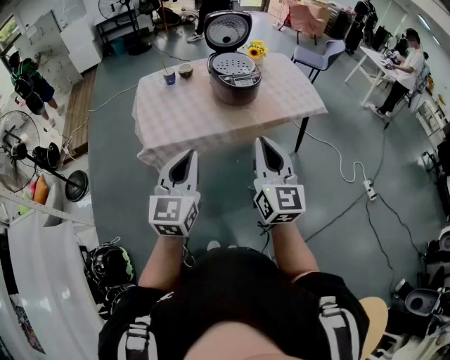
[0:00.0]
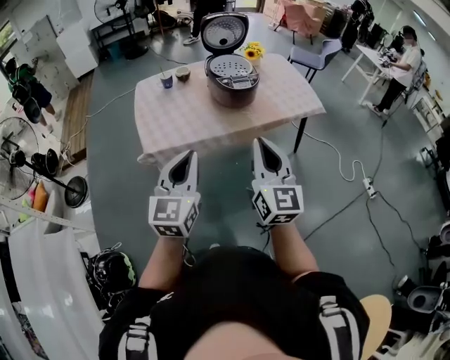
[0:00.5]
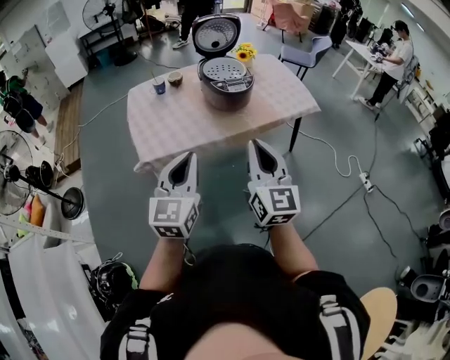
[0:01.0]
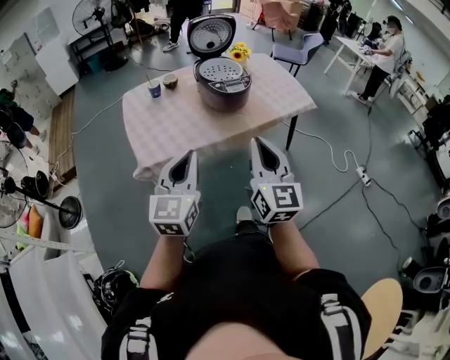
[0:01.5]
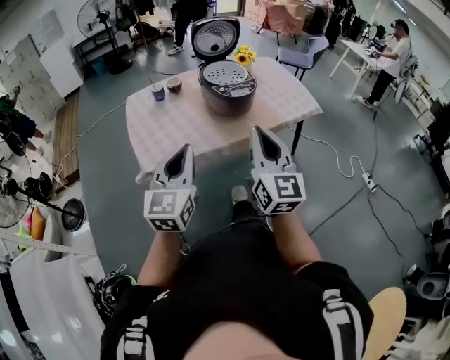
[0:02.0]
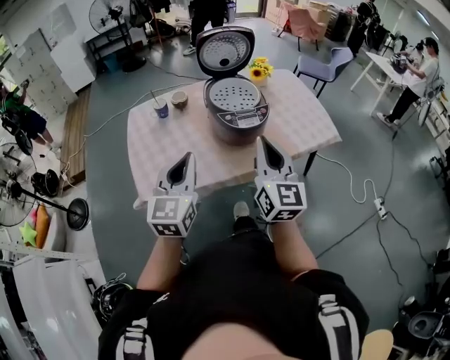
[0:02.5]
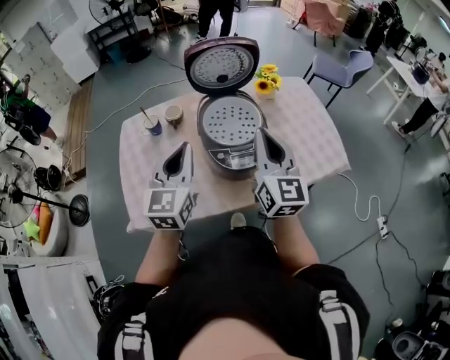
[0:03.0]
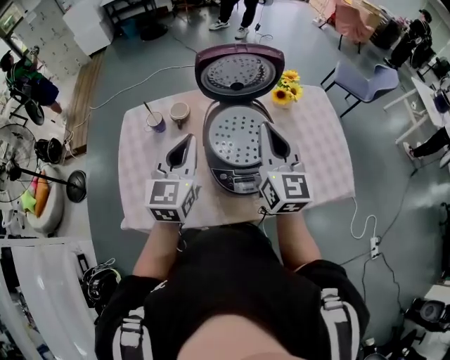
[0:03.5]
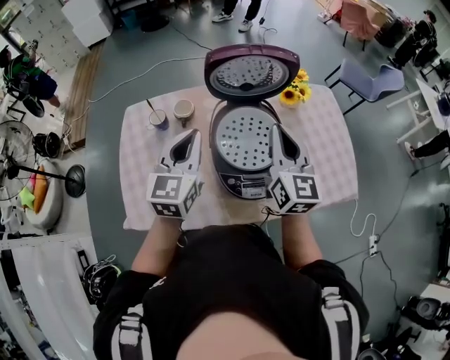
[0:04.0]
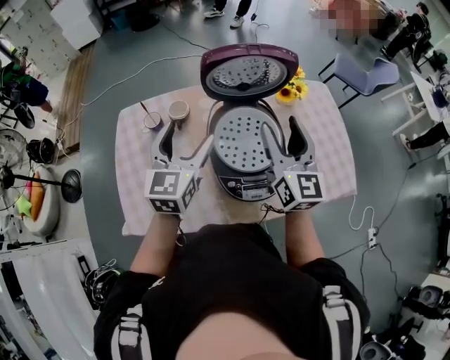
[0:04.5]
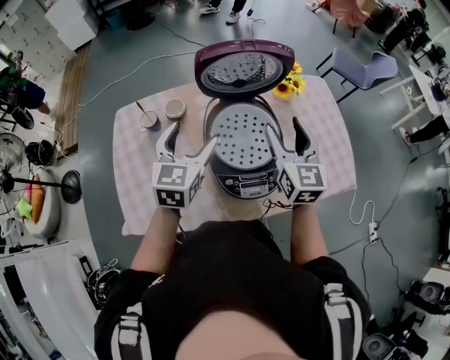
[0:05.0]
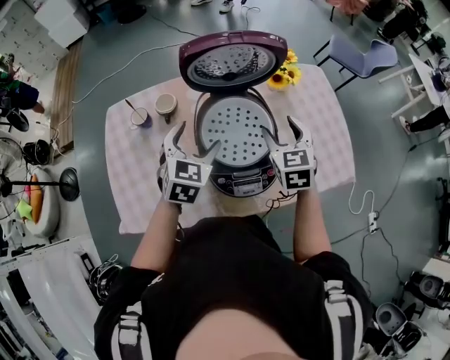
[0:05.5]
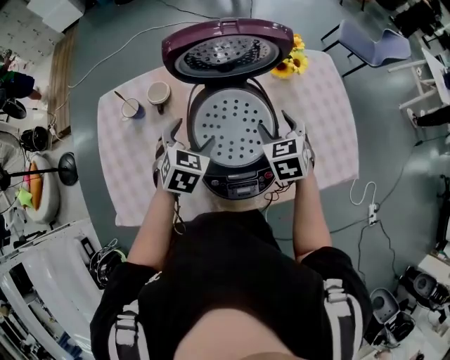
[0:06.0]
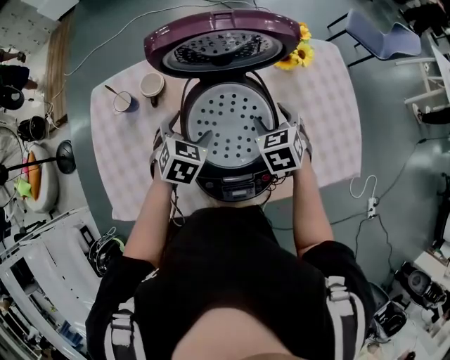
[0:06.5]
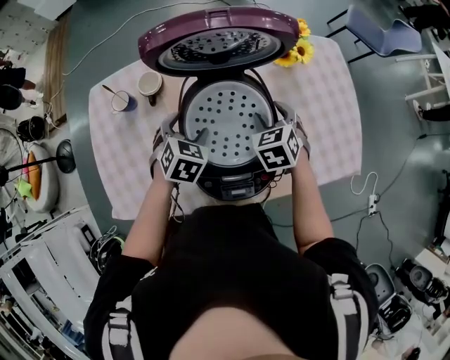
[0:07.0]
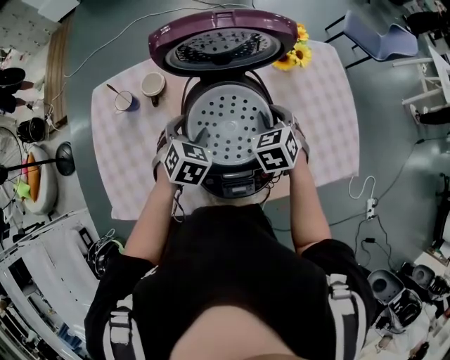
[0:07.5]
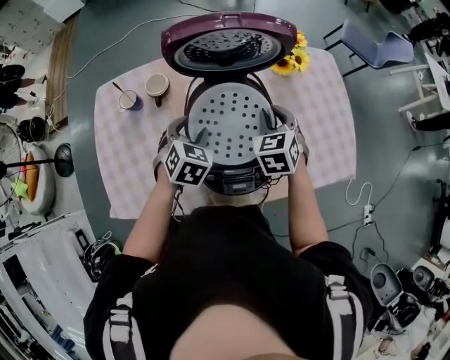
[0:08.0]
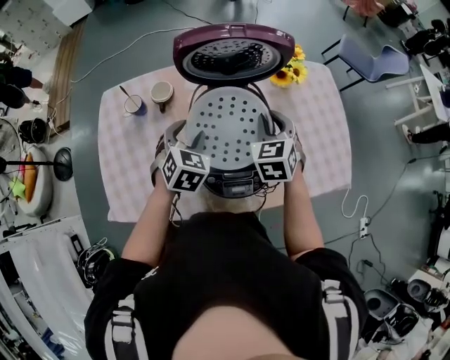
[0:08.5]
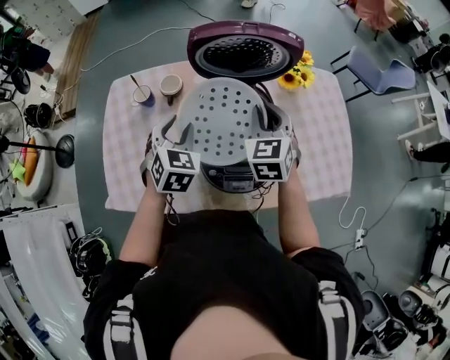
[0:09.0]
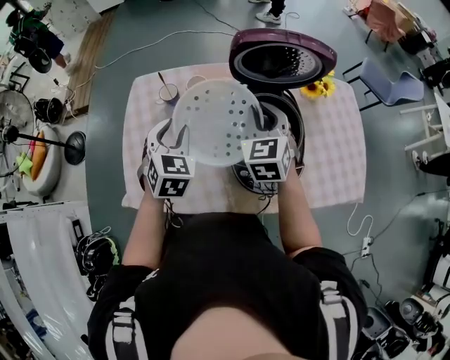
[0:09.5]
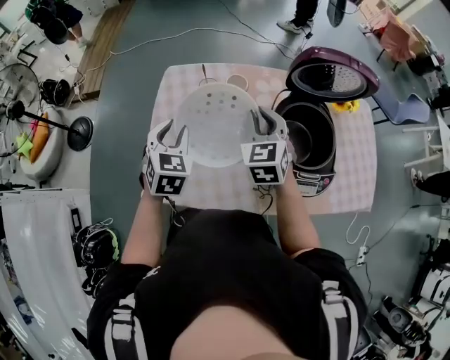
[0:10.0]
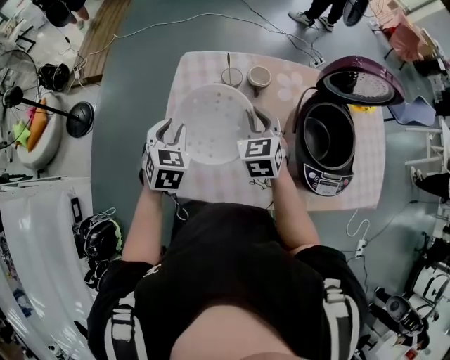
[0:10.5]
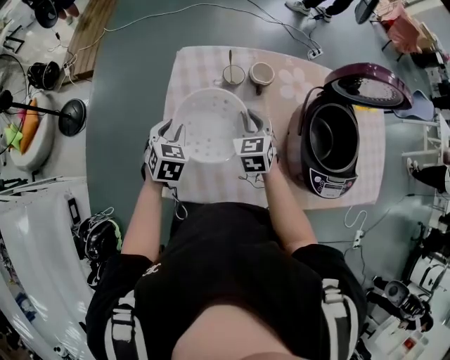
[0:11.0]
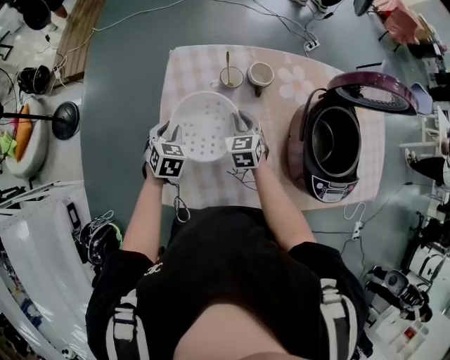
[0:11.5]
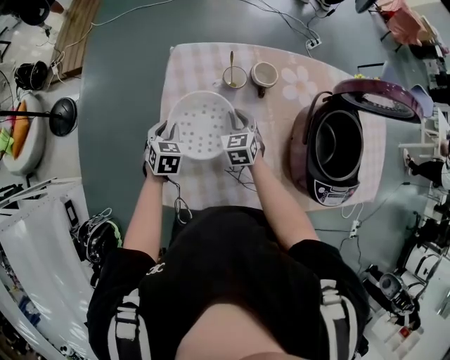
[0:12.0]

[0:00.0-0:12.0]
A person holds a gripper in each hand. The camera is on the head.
0:00.0 to 0:02.0: The two grippers go some 10 cm forward.
0:02.0 to 0:04.0: Both grippers are carried forward, approximately 50 cm.
0:04.0 to 0:06.0: Both grippers travel together downward and forward, about 20 cm. The left gripper tips its fingers downward by roughly 40 degrees, and opens its fingers. Meanwhile the right gripper points its fingers roughly 40 degrees further downward, and opens.
0:06.0 to 0:08.0: The left gripper closes. The right gripper closes its fingers.
0:08.0 to 0:10.0: The two grippers go some 35 cm to the left. The left gripper swivels approximately 20 degrees.
0:10.0 to 0:12.0: Both grippers travel together downward and to the left, roughly 30 cm.

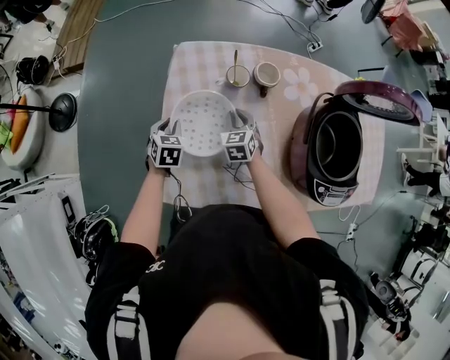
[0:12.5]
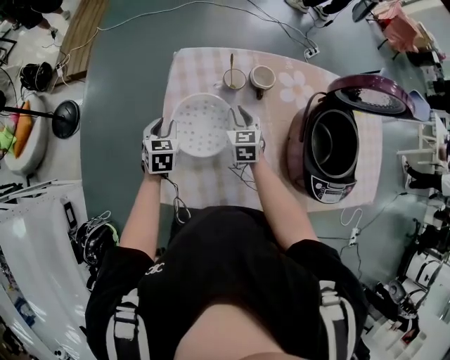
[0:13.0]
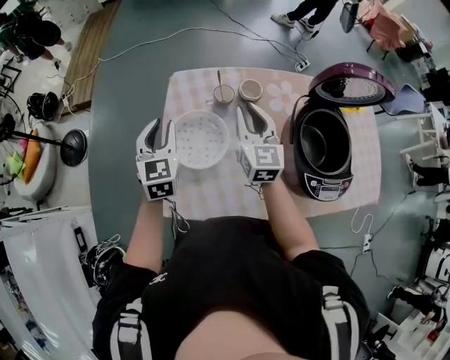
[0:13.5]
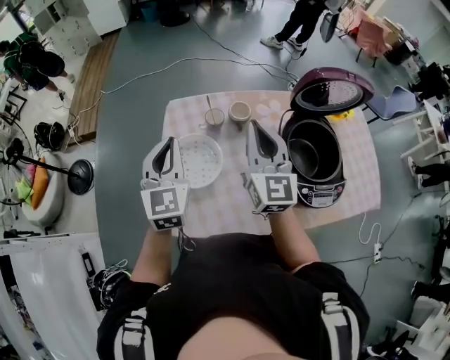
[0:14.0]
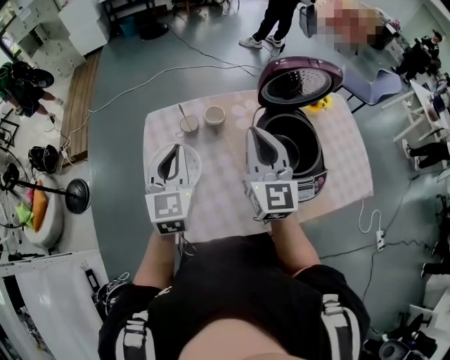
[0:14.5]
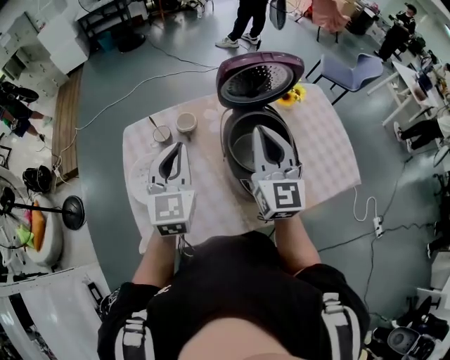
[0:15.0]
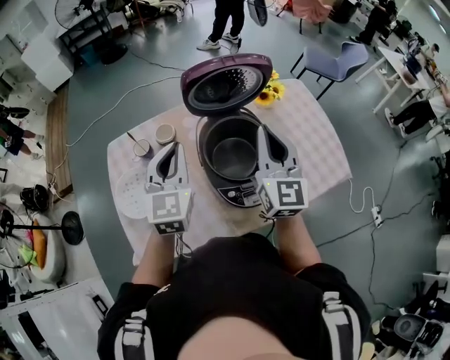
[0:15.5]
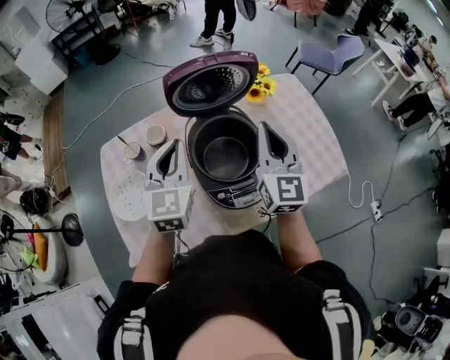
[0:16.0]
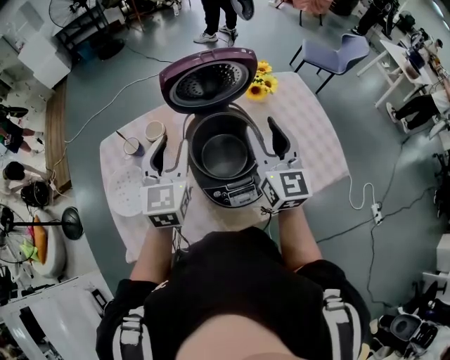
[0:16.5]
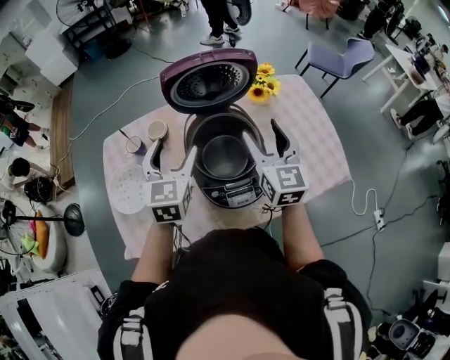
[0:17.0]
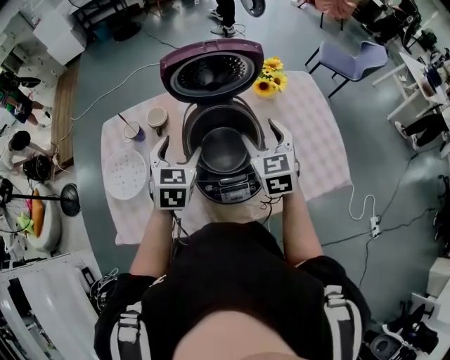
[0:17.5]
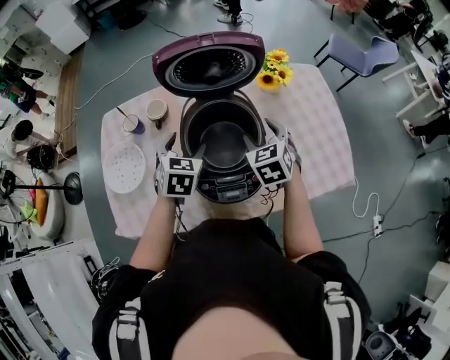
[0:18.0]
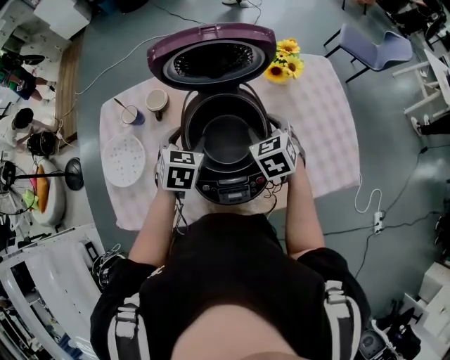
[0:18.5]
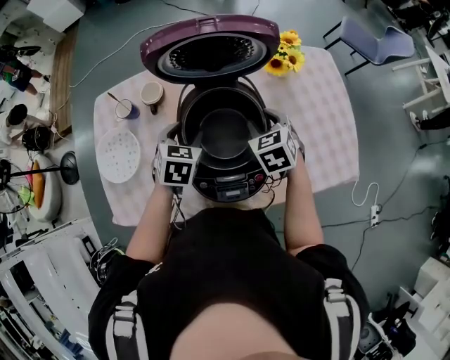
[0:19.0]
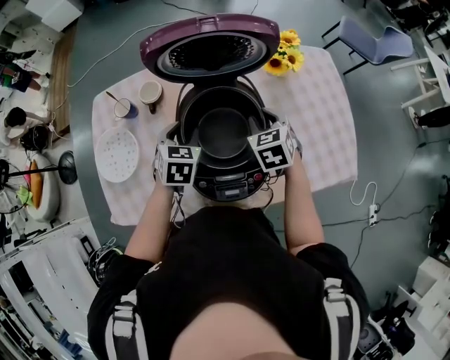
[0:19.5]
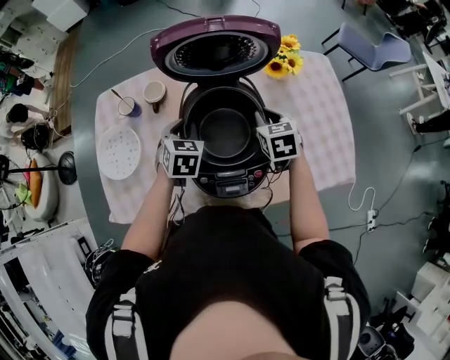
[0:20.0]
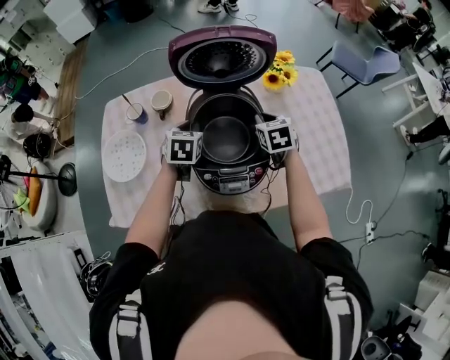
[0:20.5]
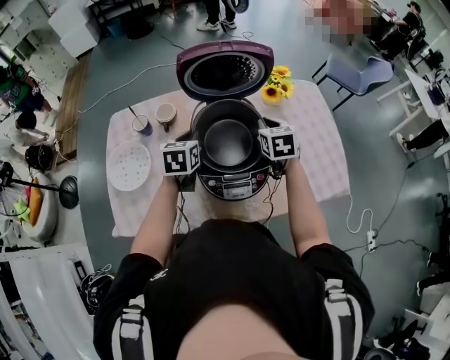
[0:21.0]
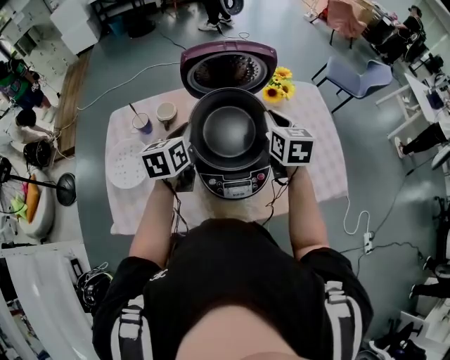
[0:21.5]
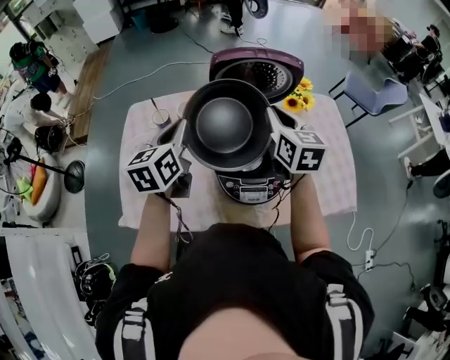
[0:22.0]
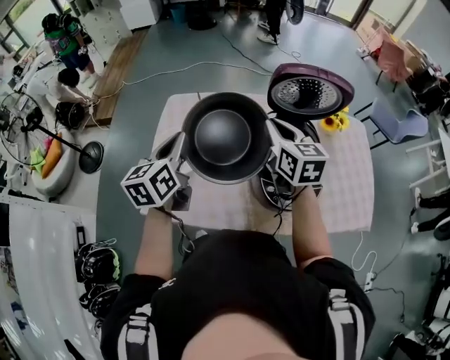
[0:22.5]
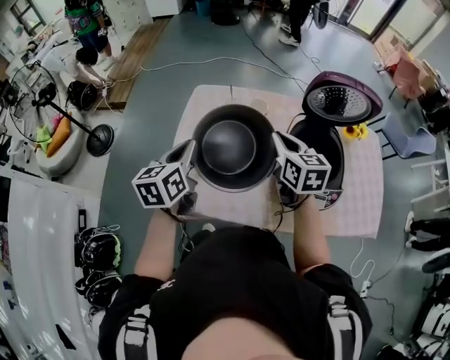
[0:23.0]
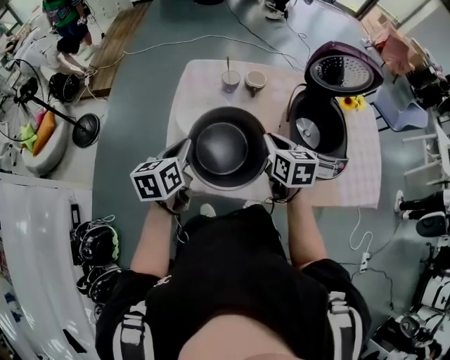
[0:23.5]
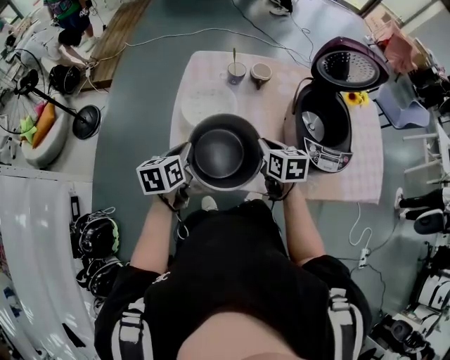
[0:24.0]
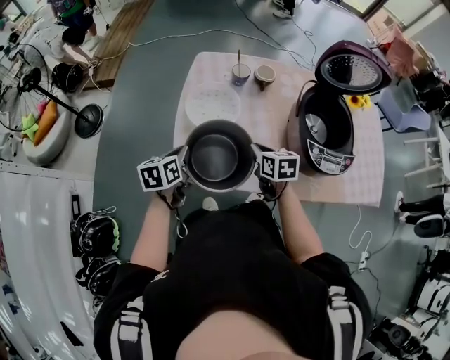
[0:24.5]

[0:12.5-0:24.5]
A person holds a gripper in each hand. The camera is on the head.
0:12.5 to 0:14.5: Both grippers travel together upward and to the right, roughly 40 cm. The left gripper tilts its fingers about 40 degrees upward. Meanwhile the right gripper tilts its fingers approximately 50 degrees upward.
0:14.5 to 0:16.5: The grippers both shift to the right by approximately 25 cm. The right gripper opens up.
0:16.5 to 0:18.5: The grippers both shift downward by approximately 20 cm. The left gripper angles its fingers downward, by about 30 degrees; the right gripper angles its fingers downward, by some 50 degrees.
0:18.5 to 0:20.5: The right gripper closes up. Meanwhile the left gripper closes.
0:20.5 to 0:22.5: The right gripper travels to the left and upward by some 30 cm, and turns by about 30 degrees; the left gripper heads to the left, upward and backward, covering roughly 35 cm, and rotates about 40 degrees.
0:22.5 to 0:24.5: Both grippers move downward, to the left and backward, approximately 35 cm. The left gripper changes its angle by some 20 degrees. The right gripper turns by roughly 30 degrees.

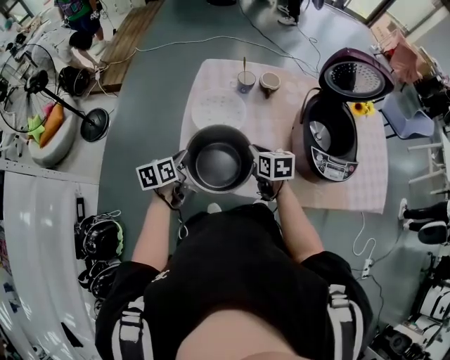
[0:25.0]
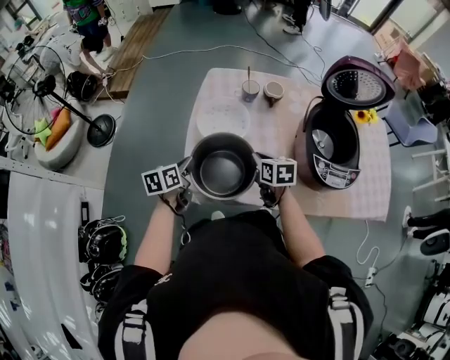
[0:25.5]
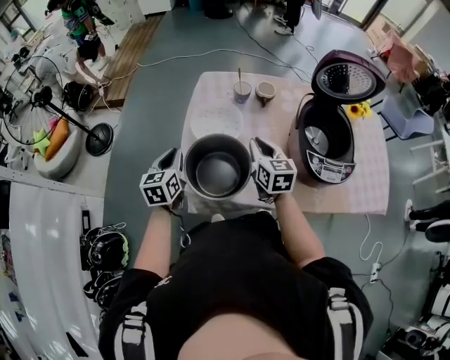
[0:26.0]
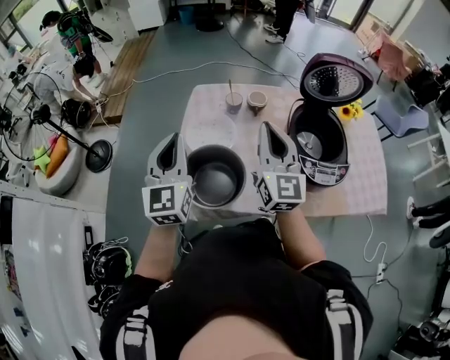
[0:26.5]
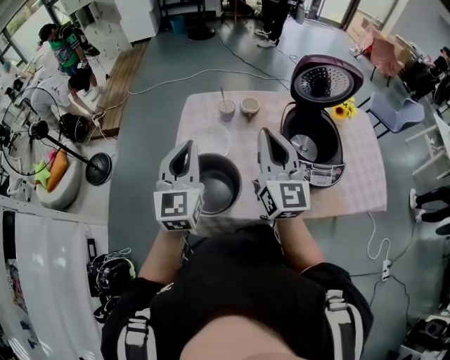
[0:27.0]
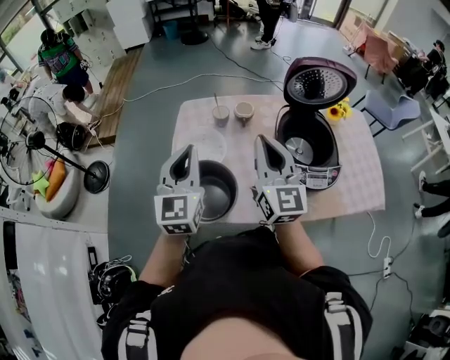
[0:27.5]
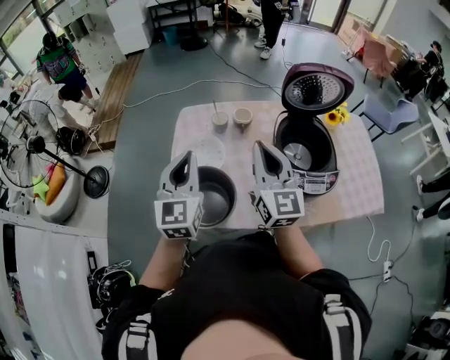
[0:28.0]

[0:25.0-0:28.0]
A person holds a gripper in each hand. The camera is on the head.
0:25.0 to 0:26.5: Both grippers travel together upward, approximately 25 cm. The left gripper tips its fingers upward by about 30 degrees, while the right gripper tips its fingers upward by about 50 degrees.
0:26.5 to 0:28.0: The left gripper travels to the right by some 5 cm.
